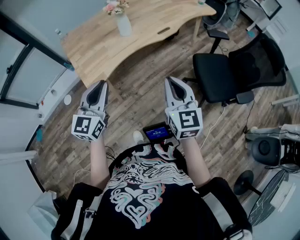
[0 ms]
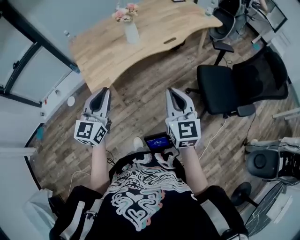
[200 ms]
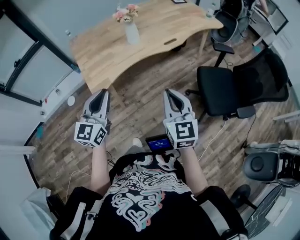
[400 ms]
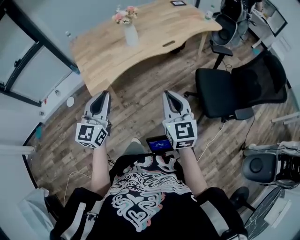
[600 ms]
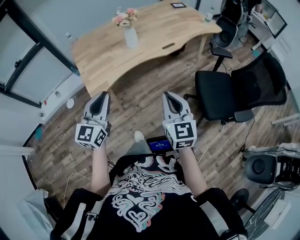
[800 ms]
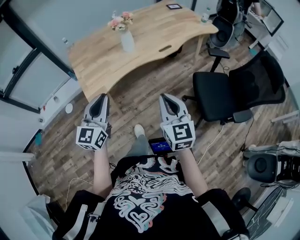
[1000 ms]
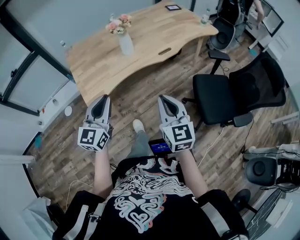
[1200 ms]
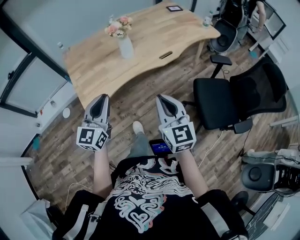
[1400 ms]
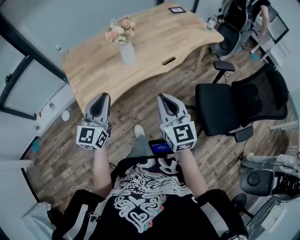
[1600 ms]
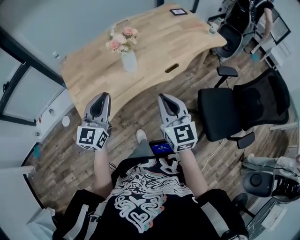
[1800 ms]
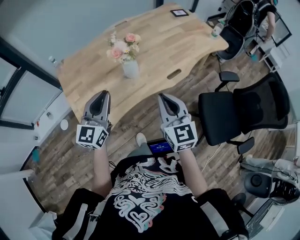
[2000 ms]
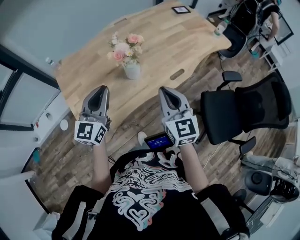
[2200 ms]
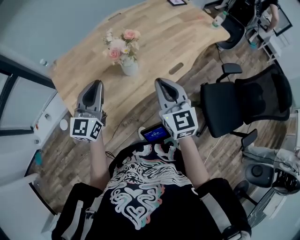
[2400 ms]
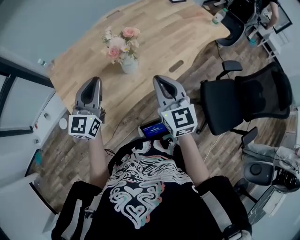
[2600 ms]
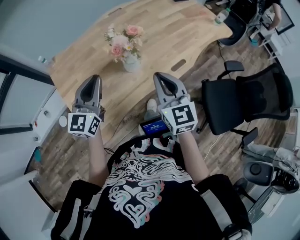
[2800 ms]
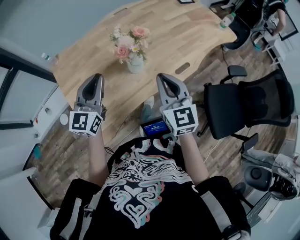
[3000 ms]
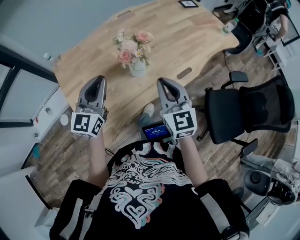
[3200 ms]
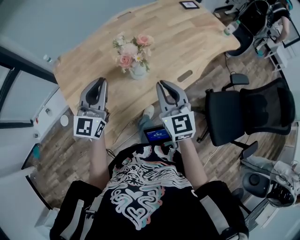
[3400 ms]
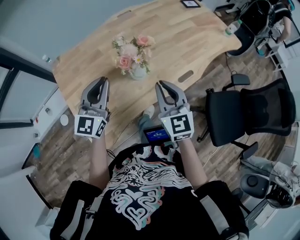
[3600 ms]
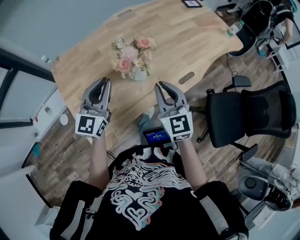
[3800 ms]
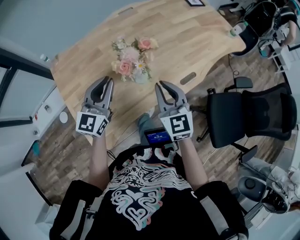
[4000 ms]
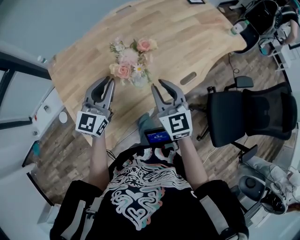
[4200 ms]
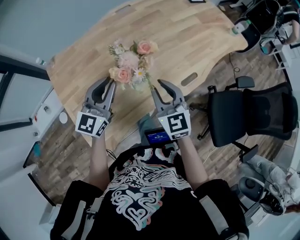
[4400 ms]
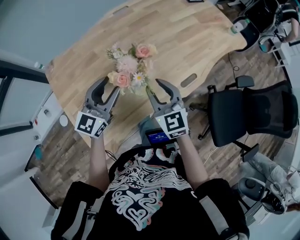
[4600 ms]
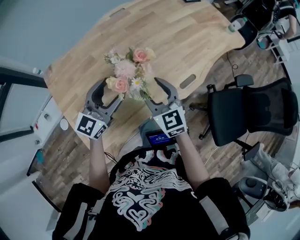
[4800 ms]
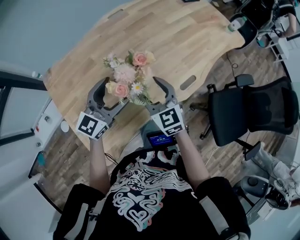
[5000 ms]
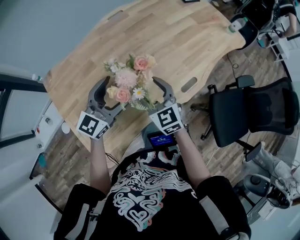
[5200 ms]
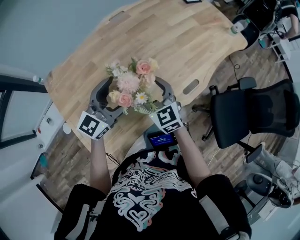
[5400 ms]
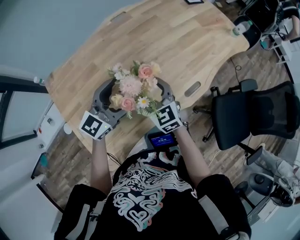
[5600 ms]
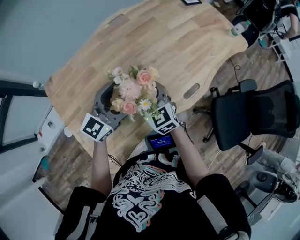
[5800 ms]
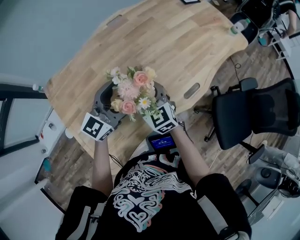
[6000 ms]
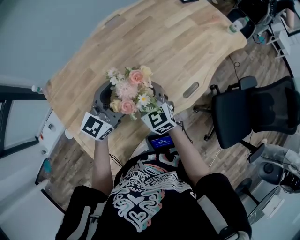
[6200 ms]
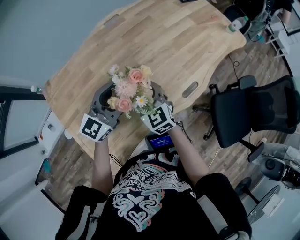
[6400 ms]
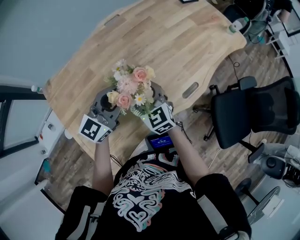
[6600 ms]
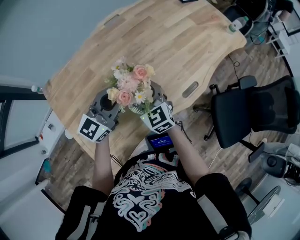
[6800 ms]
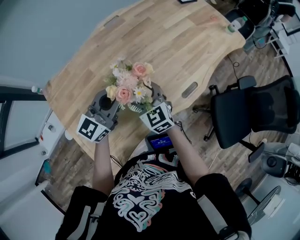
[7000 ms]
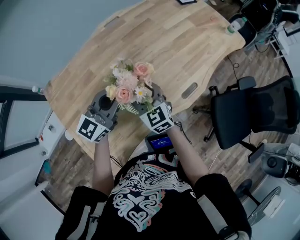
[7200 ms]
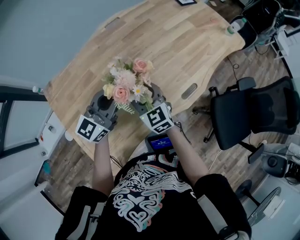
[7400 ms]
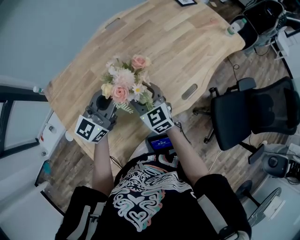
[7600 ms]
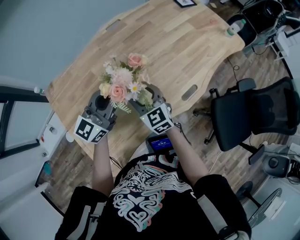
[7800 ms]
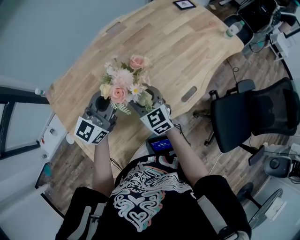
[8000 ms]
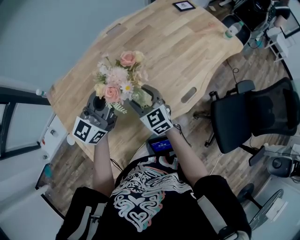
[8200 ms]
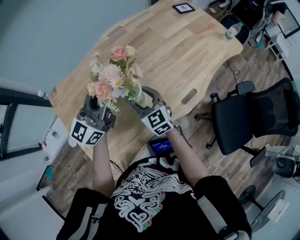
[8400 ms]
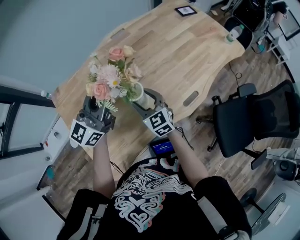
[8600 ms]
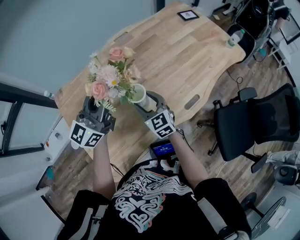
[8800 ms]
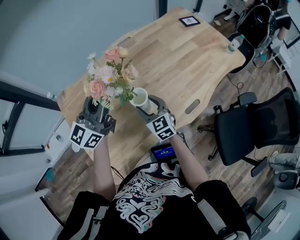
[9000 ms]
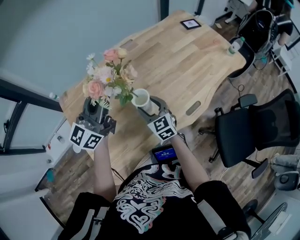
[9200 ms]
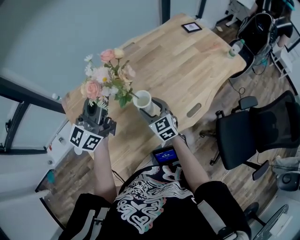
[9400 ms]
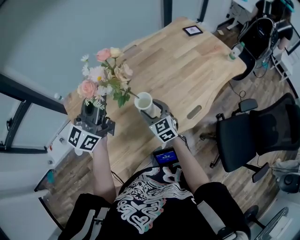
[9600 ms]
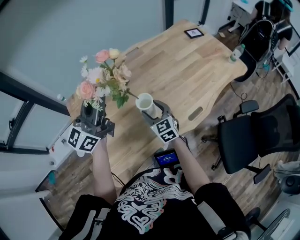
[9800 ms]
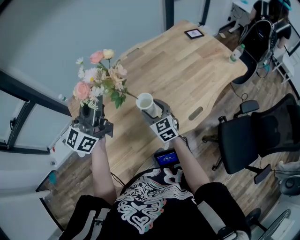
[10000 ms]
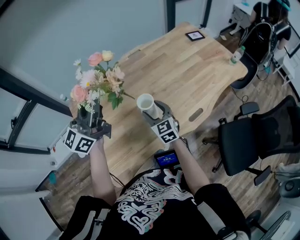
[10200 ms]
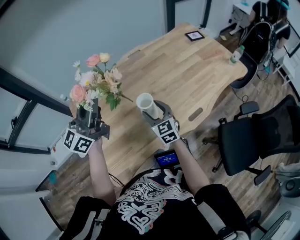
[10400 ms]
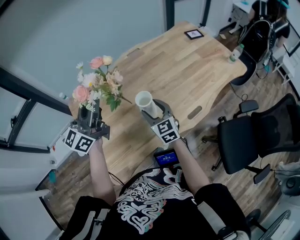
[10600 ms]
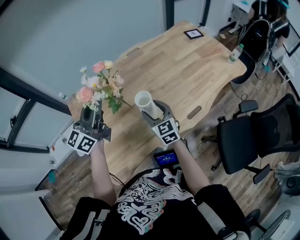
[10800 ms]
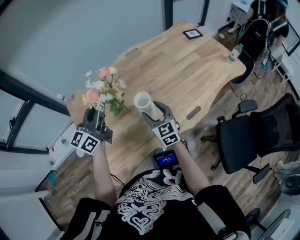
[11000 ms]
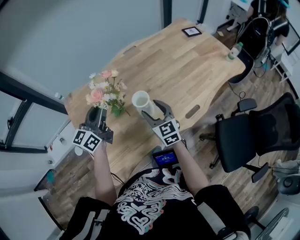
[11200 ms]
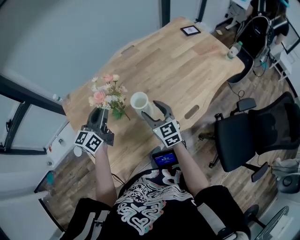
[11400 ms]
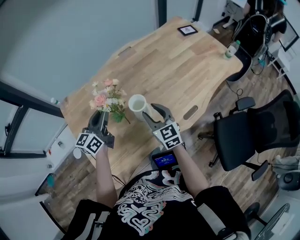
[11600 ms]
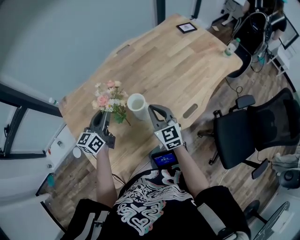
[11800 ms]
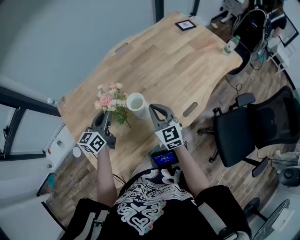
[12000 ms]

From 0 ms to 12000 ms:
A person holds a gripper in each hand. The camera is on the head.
From 0 ms to 1600 ms: Both grippers move forward, some 15 cm.
From 1600 ms to 3000 ms: Both grippers move forward, about 25 cm.
From 3000 ms to 4400 ms: Both grippers move forward and downward, some 10 cm.
From 4400 ms to 6000 ms: The right gripper is displaced forward and to the left by about 10 cm, and opens up, while the left gripper heads forward, covering about 5 cm, swivels approximately 20 degrees, and opens.
From 6000 ms to 7600 ms: The left gripper closes its fingers.
From 7600 ms to 9000 ms: The left gripper is displaced upward by some 10 cm.
From 9000 ms to 10400 ms: The left gripper travels upward by roughly 5 cm.
From 10400 ms to 12000 ms: The right gripper closes; the left gripper goes some 25 cm downward, and changes its angle by some 30 degrees.

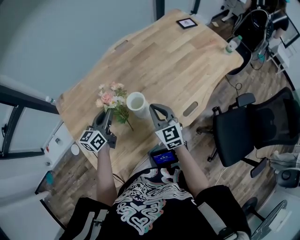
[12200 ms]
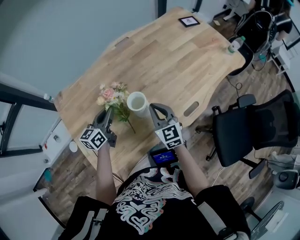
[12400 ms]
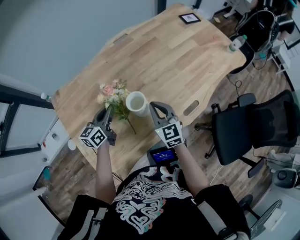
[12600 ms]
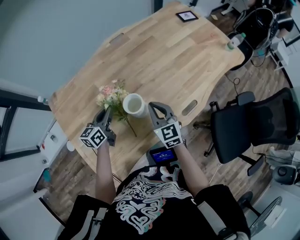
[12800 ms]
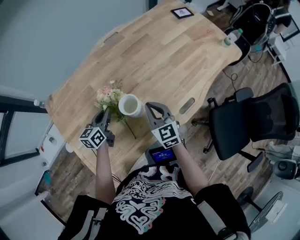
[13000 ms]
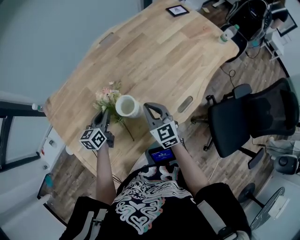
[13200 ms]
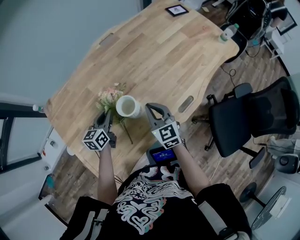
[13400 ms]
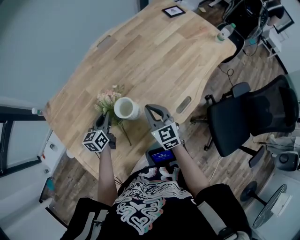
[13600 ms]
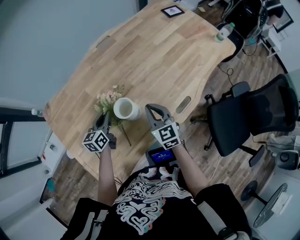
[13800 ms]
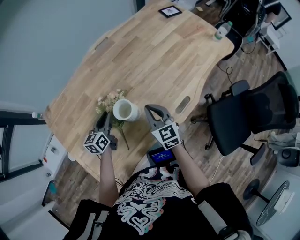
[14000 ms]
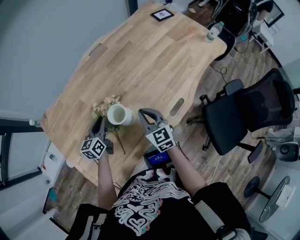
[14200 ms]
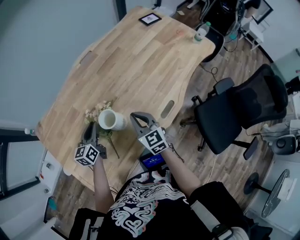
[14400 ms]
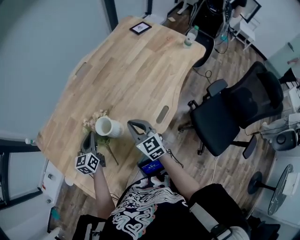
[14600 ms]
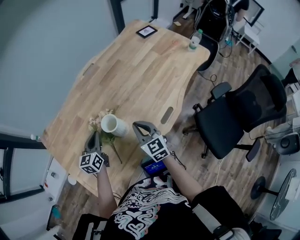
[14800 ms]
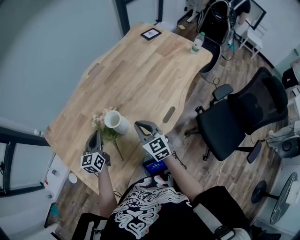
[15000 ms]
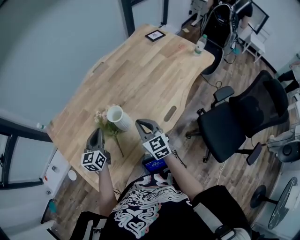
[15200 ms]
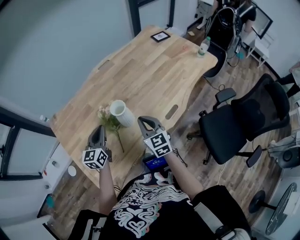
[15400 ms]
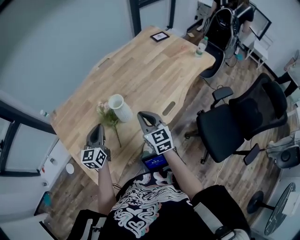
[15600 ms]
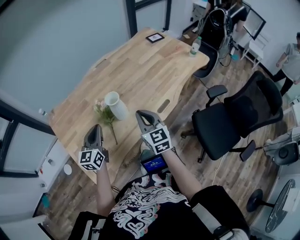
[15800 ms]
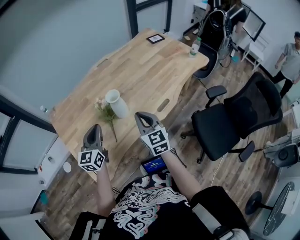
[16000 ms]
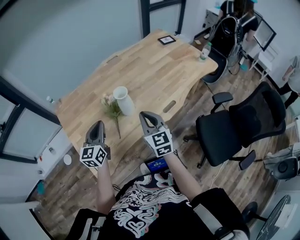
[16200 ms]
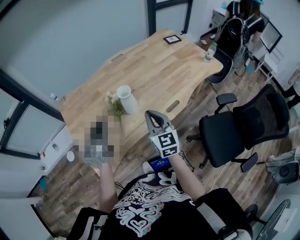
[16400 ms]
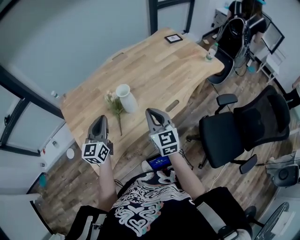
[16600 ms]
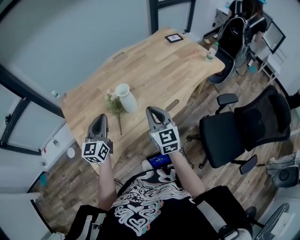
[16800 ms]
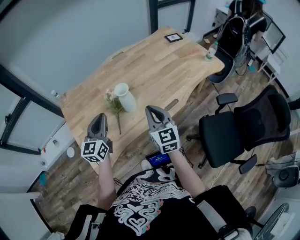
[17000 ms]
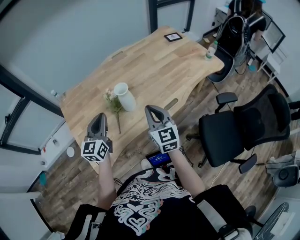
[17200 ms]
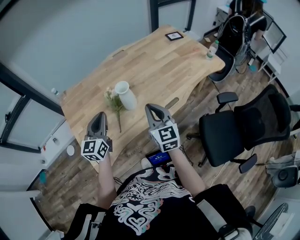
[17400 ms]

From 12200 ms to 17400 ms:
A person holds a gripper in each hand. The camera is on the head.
From 12200 ms to 14000 ms: The left gripper is displaced downward by about 10 cm. Meanwhile the right gripper changes place by approximately 5 cm.
From 14000 ms to 15600 ms: The grippers both shift upward and backward by some 15 cm. The left gripper changes its angle by some 20 degrees.
From 15600 ms to 17400 ms: The two grippers go approximately 10 cm upward and backward.

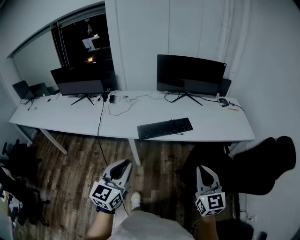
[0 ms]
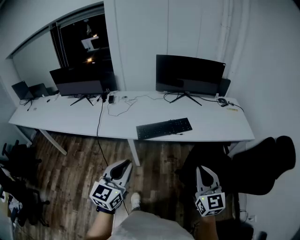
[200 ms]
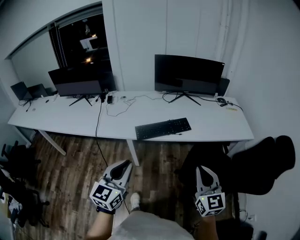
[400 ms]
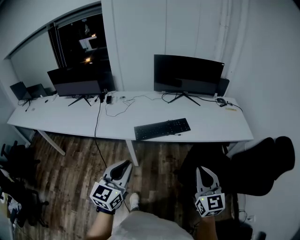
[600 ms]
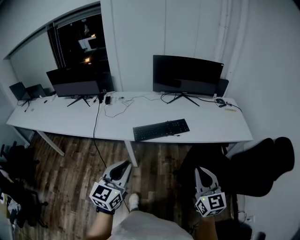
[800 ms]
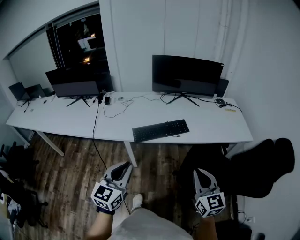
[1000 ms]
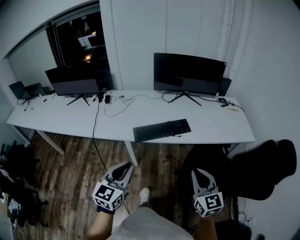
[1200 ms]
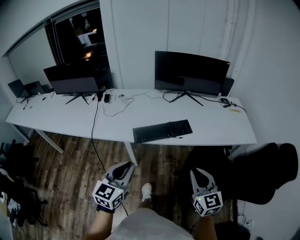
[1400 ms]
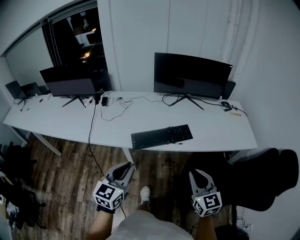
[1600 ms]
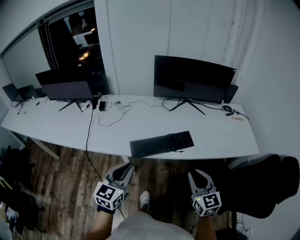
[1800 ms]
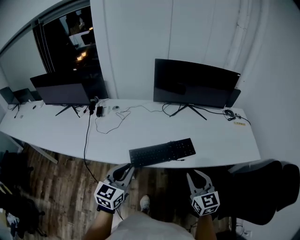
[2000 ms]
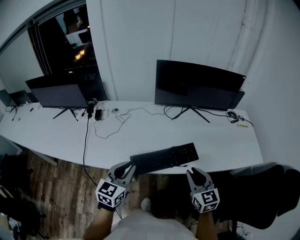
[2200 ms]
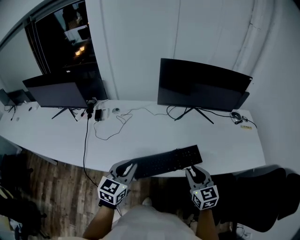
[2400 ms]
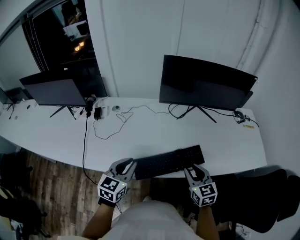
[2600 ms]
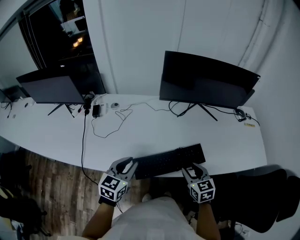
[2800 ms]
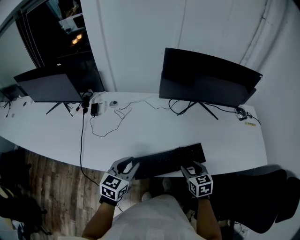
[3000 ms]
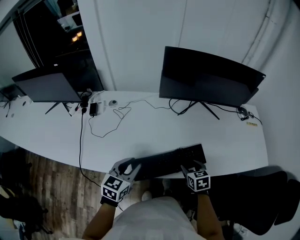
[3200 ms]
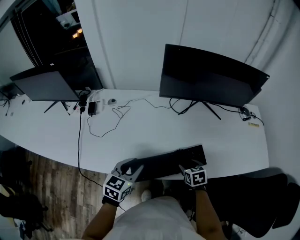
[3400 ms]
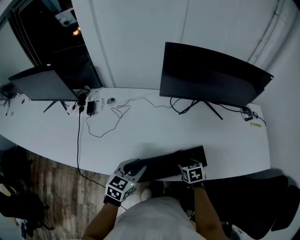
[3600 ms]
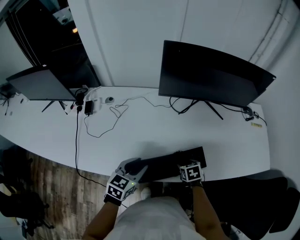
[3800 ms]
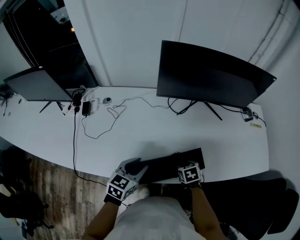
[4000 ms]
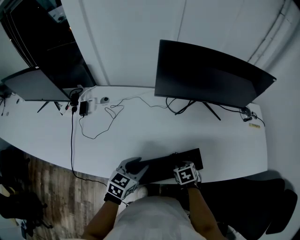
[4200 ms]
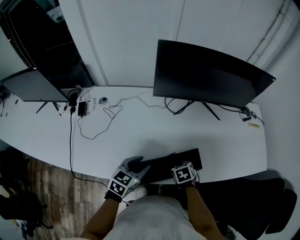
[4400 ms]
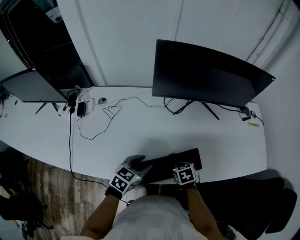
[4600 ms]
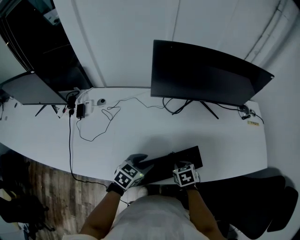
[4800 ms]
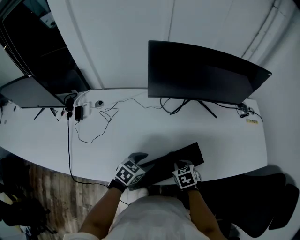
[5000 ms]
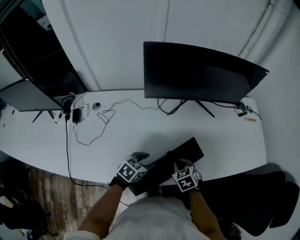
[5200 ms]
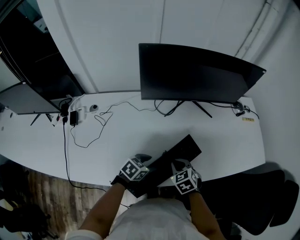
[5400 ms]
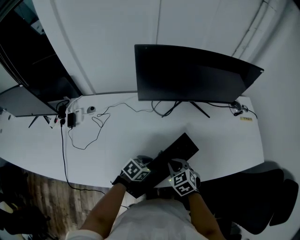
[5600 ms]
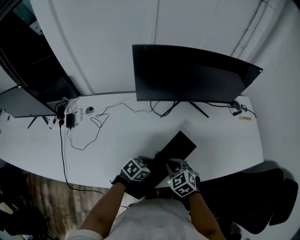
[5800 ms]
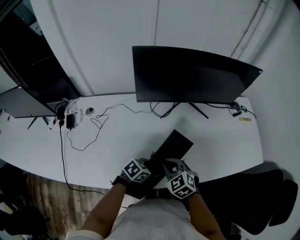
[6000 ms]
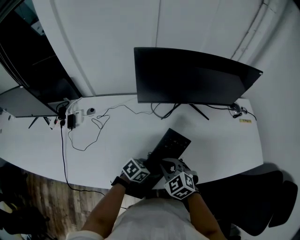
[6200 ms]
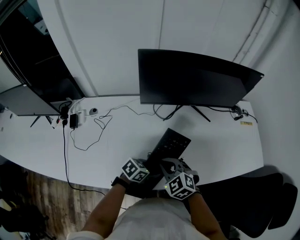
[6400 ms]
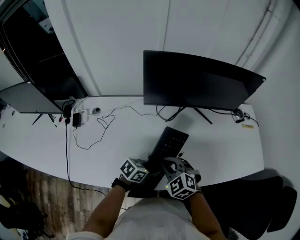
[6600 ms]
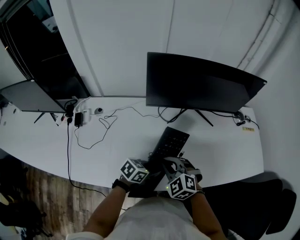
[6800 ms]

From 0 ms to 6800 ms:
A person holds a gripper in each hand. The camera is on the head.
From 0 ms to 1400 ms: The two grippers go some 10 cm forward and downward.
From 1400 ms to 2800 ms: The right gripper goes roughly 35 cm forward and downward, turns by approximately 20 degrees, and opens its fingers, while the left gripper travels forward by about 35 cm.
From 2800 ms to 4000 ms: The left gripper goes some 10 cm forward, to the right and downward, while the right gripper is displaced downward and forward by about 20 cm, and angles its fingers downward, by approximately 40 degrees.
From 4000 ms to 5400 ms: The right gripper heads upward, covering roughly 5 cm, swivels roughly 20 degrees, and closes up. The left gripper moves to the right, downward and forward, approximately 15 cm, and turns by about 30 degrees.
From 5400 ms to 6800 ms: The right gripper travels upward and to the left by roughly 10 cm, and swivels roughly 30 degrees. Meanwhile the left gripper closes its fingers.
